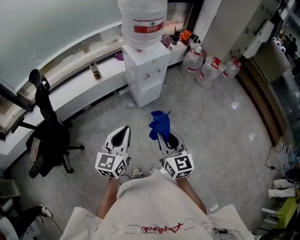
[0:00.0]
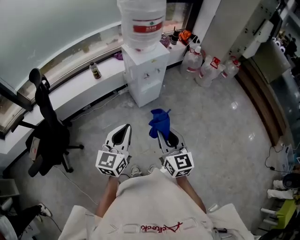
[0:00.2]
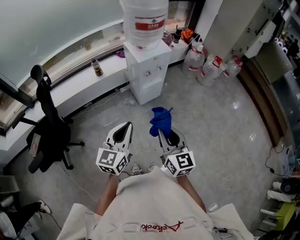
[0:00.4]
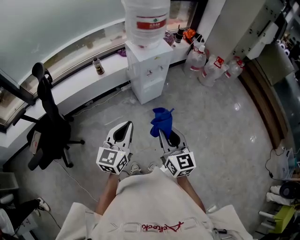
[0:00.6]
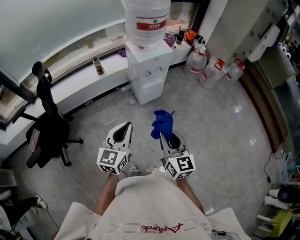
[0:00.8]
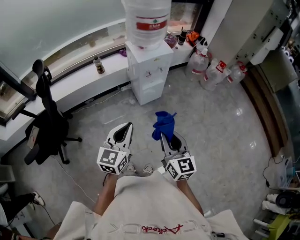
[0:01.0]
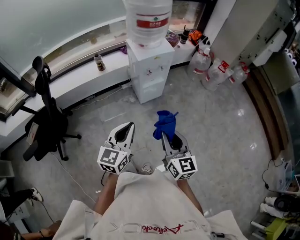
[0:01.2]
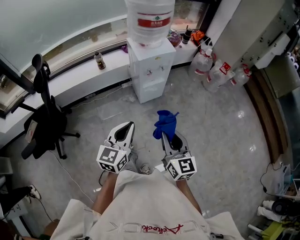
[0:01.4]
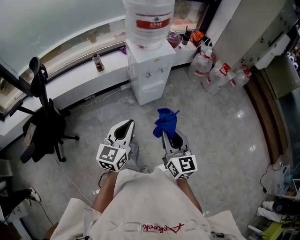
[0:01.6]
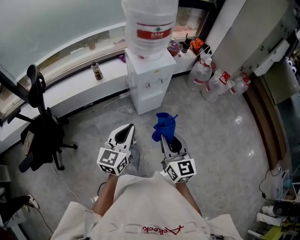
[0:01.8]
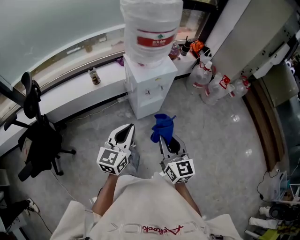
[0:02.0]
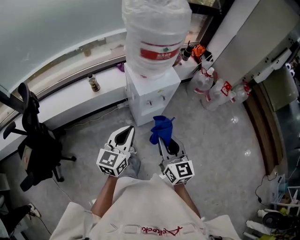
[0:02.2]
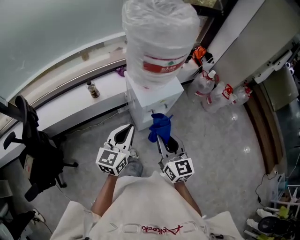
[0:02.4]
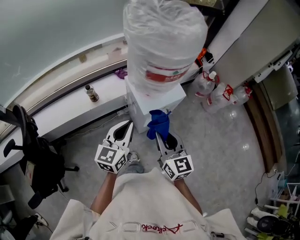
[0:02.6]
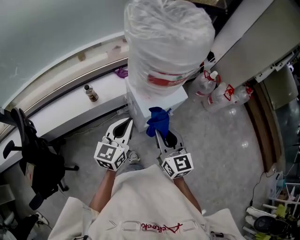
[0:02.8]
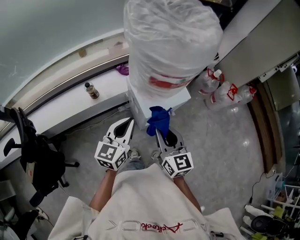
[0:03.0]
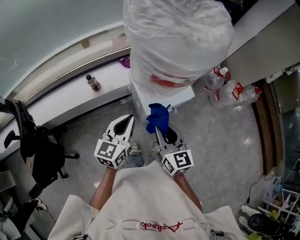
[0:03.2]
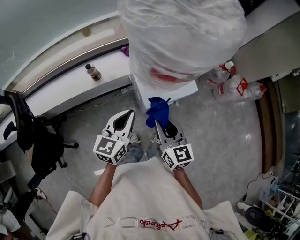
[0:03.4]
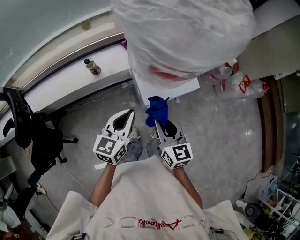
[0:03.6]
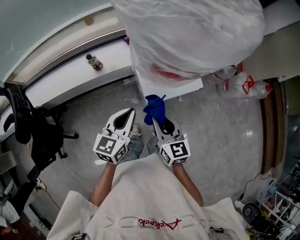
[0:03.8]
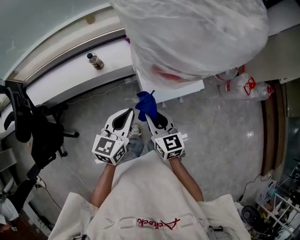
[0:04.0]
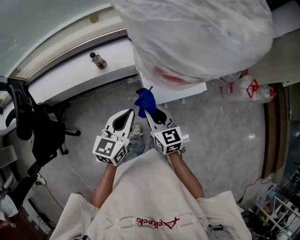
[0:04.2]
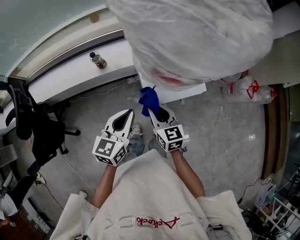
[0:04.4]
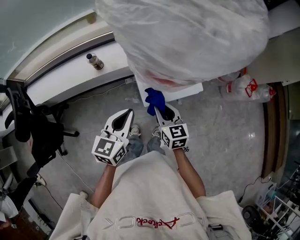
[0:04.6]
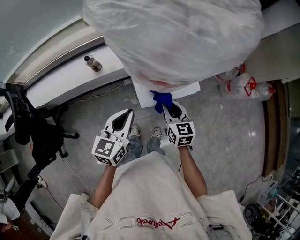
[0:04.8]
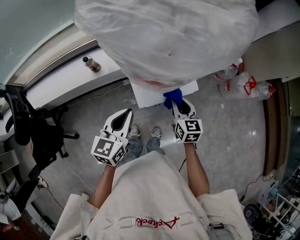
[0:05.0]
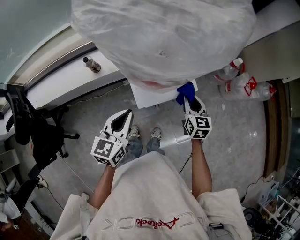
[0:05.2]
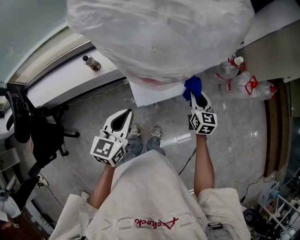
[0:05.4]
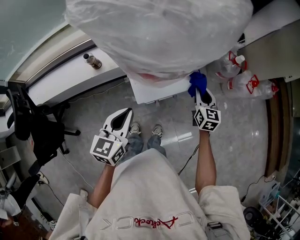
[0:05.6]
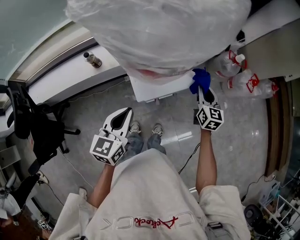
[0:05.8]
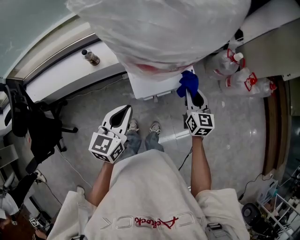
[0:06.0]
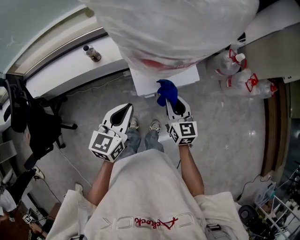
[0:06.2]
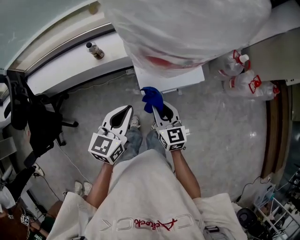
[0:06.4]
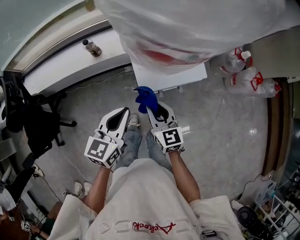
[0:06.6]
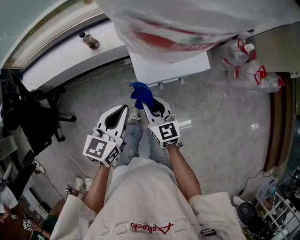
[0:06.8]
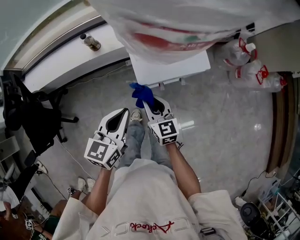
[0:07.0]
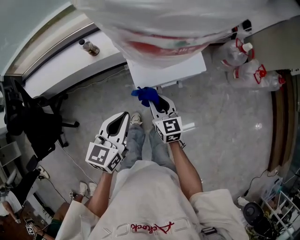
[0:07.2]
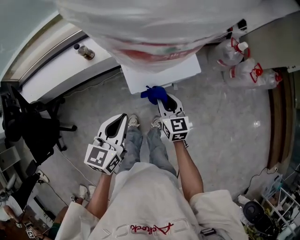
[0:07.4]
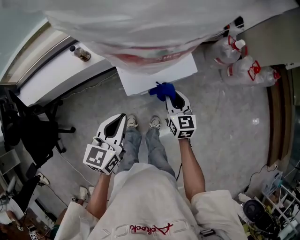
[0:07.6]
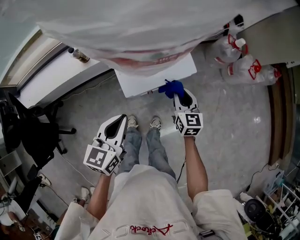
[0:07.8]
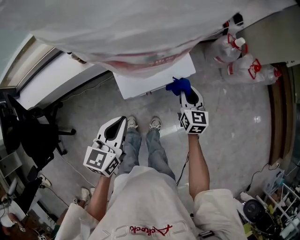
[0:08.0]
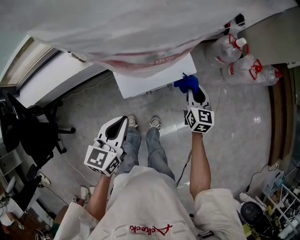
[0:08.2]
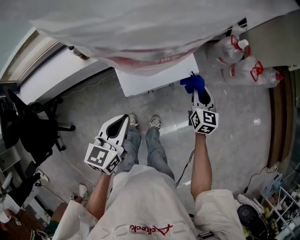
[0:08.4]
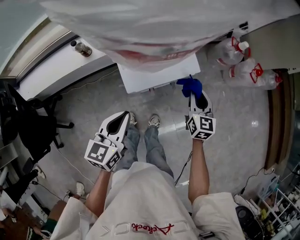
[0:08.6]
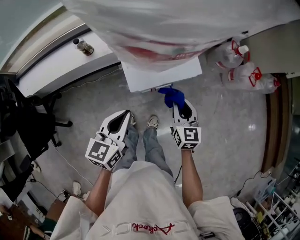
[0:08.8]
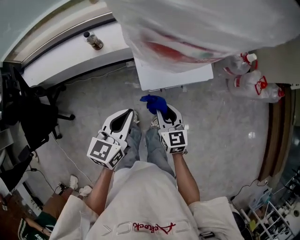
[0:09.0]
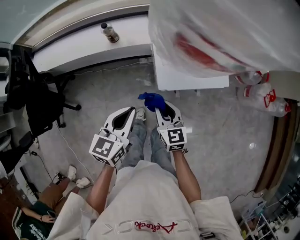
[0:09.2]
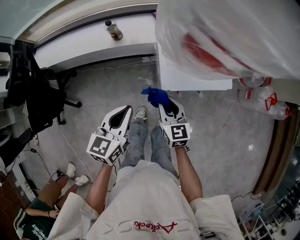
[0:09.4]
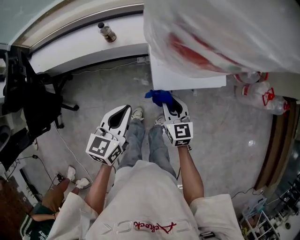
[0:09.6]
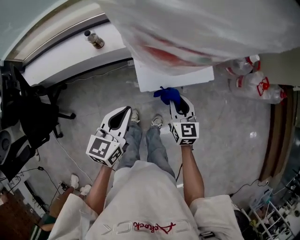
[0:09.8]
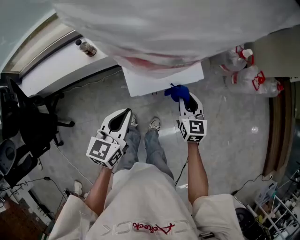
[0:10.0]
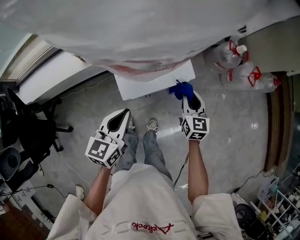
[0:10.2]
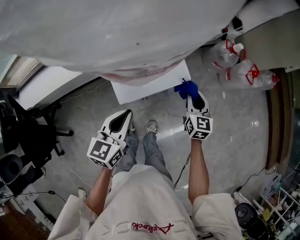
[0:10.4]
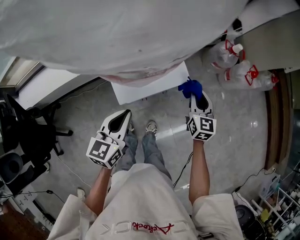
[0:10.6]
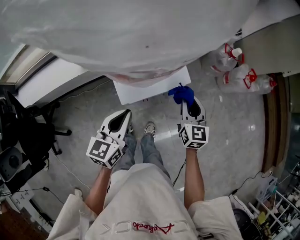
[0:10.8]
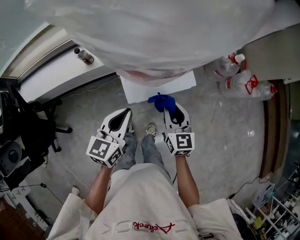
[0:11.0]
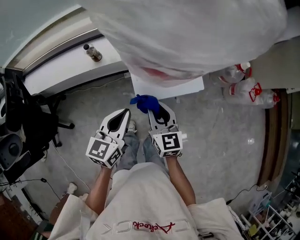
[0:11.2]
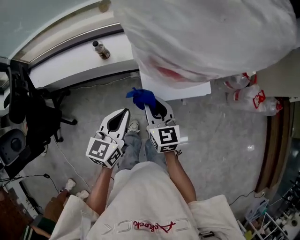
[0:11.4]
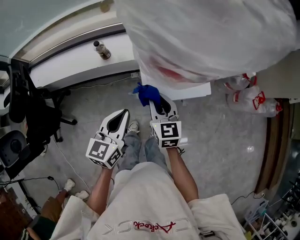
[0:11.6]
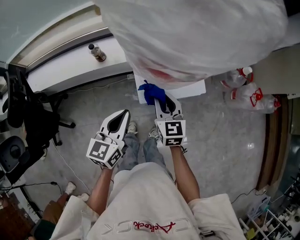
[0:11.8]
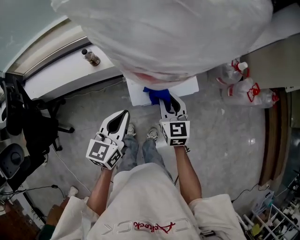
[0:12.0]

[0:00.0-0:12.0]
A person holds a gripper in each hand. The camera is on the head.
0:00.0 to 0:01.6: The two grippers go roughly 10 cm to the right and forward.
0:01.6 to 0:03.0: Both grippers move forward, some 40 cm.
0:03.0 to 0:04.4: The right gripper is displaced downward and forward by some 15 cm, and rotates some 20 degrees, while the left gripper heads downward, covering roughly 5 cm.
0:04.4 to 0:06.0: The right gripper goes some 20 cm to the right, and swivels about 20 degrees. Meanwhile the left gripper is displaced to the right by approximately 5 cm.
0:06.0 to 0:07.6: The left gripper shifts by roughly 5 cm, while the right gripper goes about 10 cm downward, and moves some 20 cm to the left and comes back.
0:07.6 to 0:09.0: The right gripper is displaced backward and to the left by roughly 10 cm.
0:09.0 to 0:10.4: The right gripper changes place by about 25 cm, and changes its angle by roughly 20 degrees. Meanwhile the left gripper shifts by approximately 10 cm.
0:10.4 to 0:12.0: The right gripper goes some 20 cm to the left. Meanwhile the left gripper travels to the left by some 5 cm.

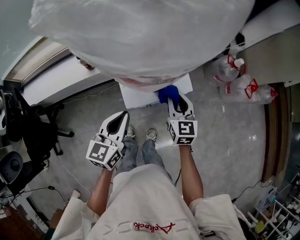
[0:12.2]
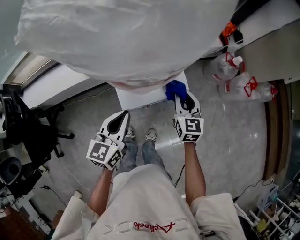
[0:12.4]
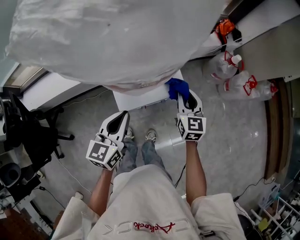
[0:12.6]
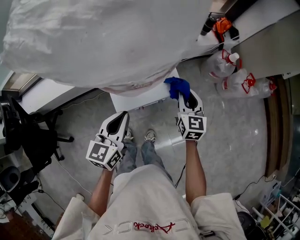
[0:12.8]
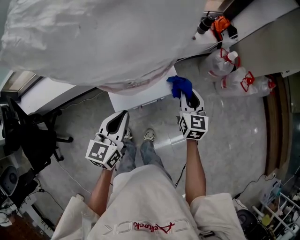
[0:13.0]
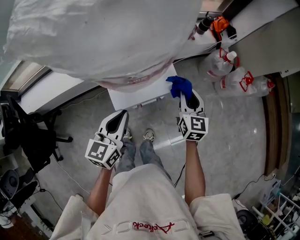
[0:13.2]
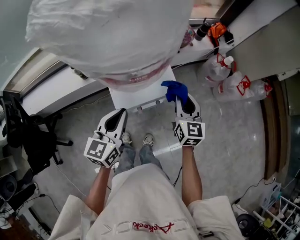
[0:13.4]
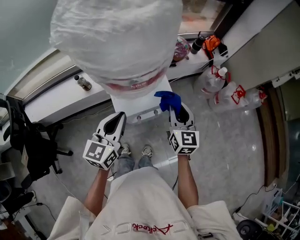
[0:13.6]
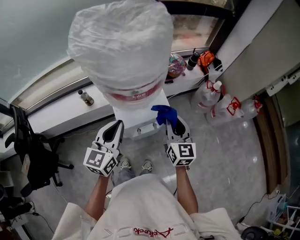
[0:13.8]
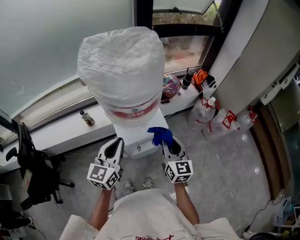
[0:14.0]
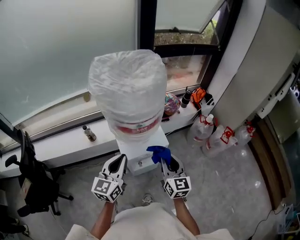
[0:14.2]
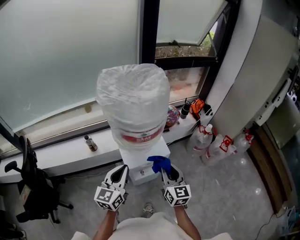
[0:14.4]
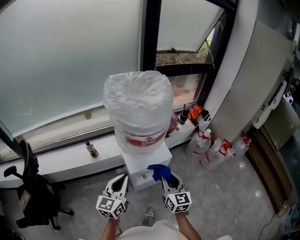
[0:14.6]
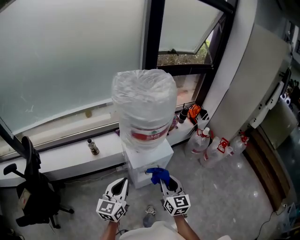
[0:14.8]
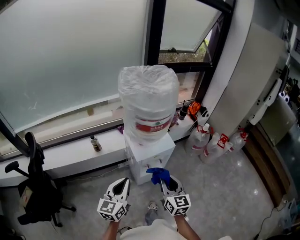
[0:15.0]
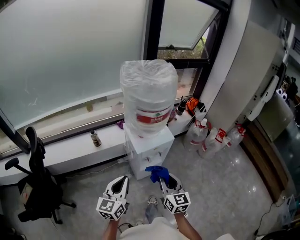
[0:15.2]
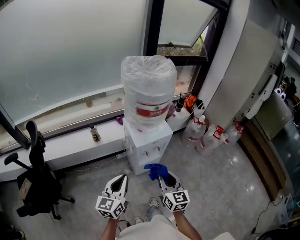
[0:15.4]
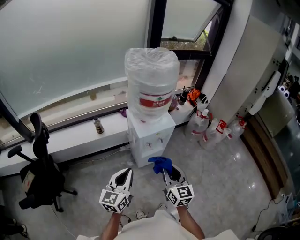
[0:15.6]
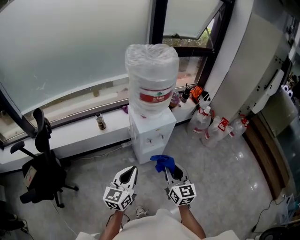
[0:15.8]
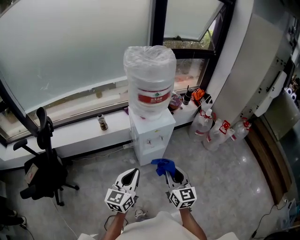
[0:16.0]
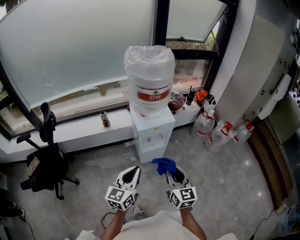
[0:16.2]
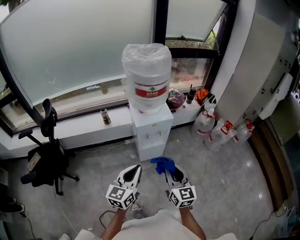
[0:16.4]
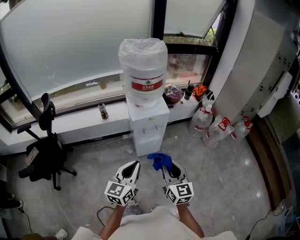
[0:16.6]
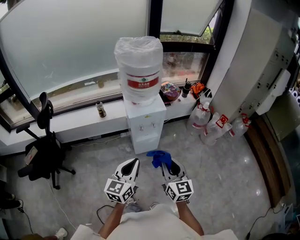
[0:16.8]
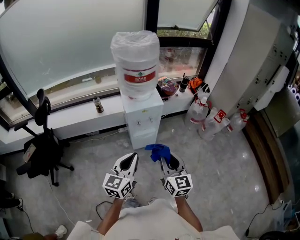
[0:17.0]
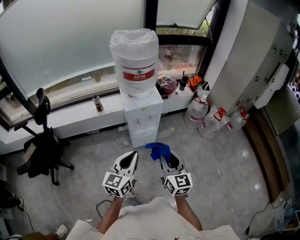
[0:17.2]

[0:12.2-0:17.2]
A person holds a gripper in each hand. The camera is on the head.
0:12.2 to 0:13.8: The left gripper shifts roughly 10 cm upward. The right gripper shifts about 15 cm upward and to the right.
0:13.8 to 0:15.6: Both grippers travel together backward, about 30 cm.
0:15.6 to 0:17.2: The two grippers go roughly 20 cm to the right and backward.

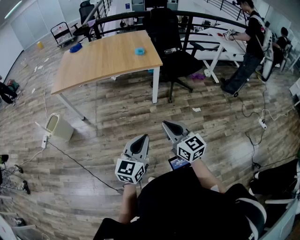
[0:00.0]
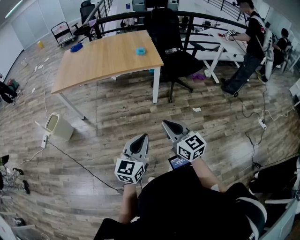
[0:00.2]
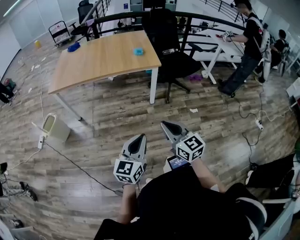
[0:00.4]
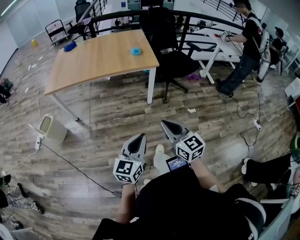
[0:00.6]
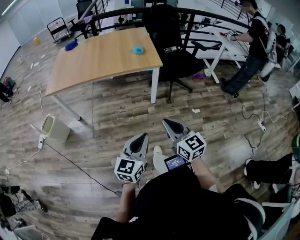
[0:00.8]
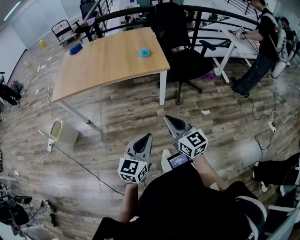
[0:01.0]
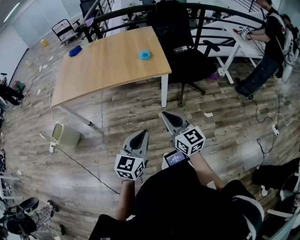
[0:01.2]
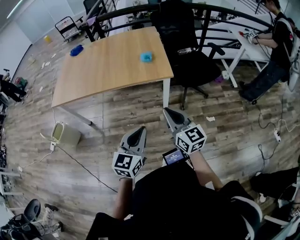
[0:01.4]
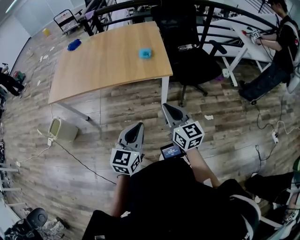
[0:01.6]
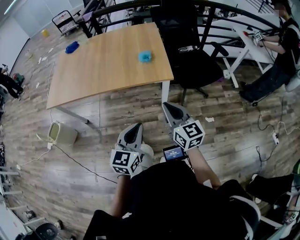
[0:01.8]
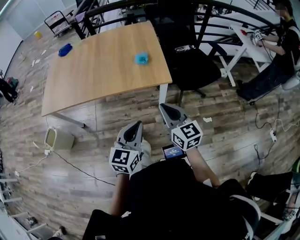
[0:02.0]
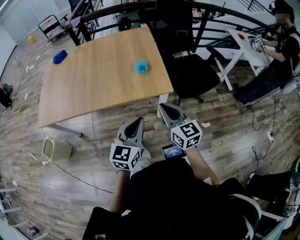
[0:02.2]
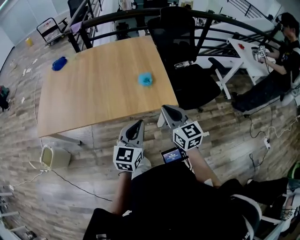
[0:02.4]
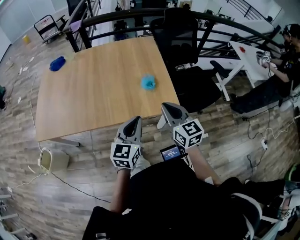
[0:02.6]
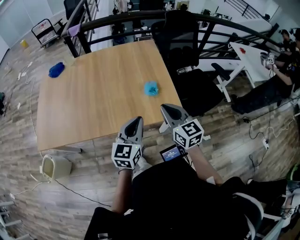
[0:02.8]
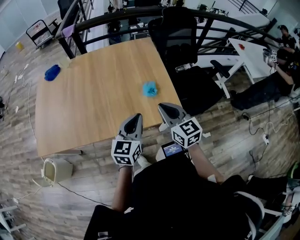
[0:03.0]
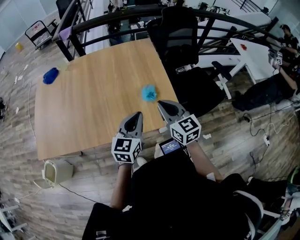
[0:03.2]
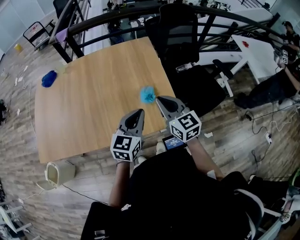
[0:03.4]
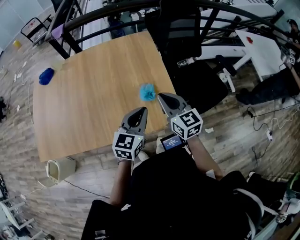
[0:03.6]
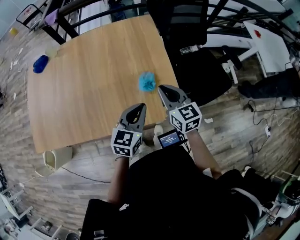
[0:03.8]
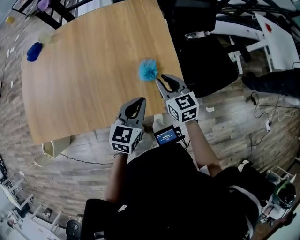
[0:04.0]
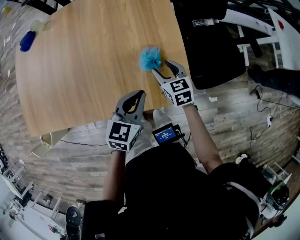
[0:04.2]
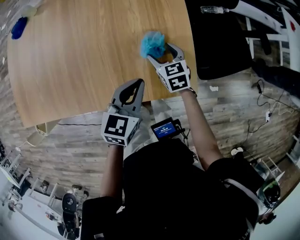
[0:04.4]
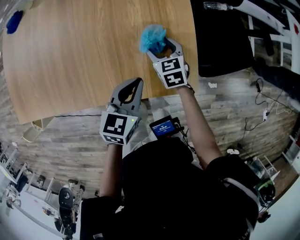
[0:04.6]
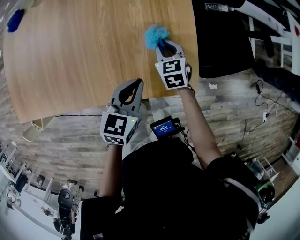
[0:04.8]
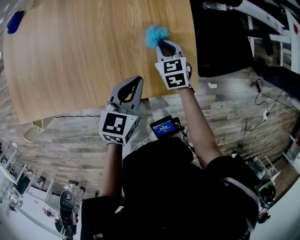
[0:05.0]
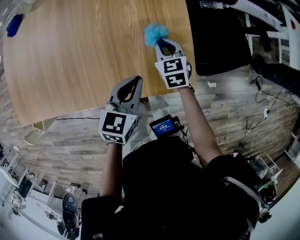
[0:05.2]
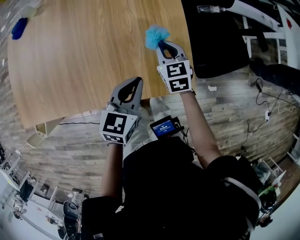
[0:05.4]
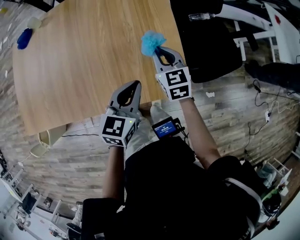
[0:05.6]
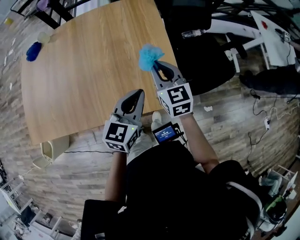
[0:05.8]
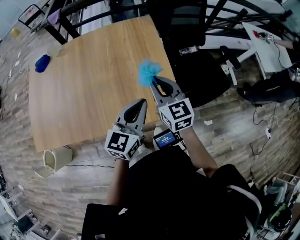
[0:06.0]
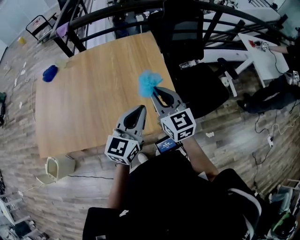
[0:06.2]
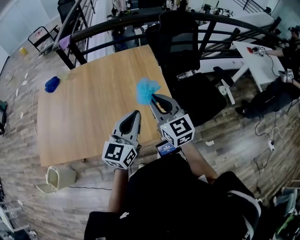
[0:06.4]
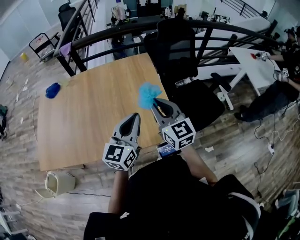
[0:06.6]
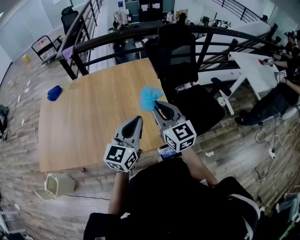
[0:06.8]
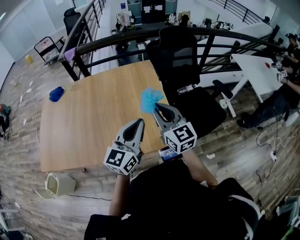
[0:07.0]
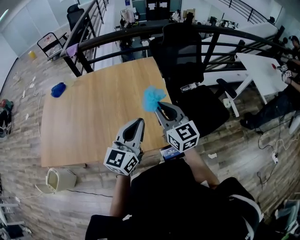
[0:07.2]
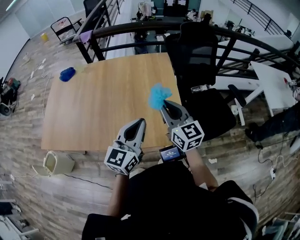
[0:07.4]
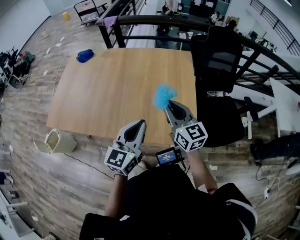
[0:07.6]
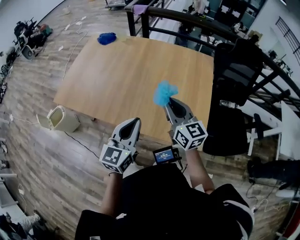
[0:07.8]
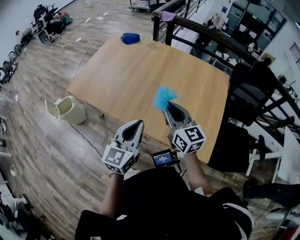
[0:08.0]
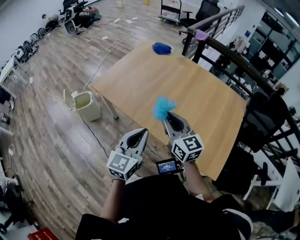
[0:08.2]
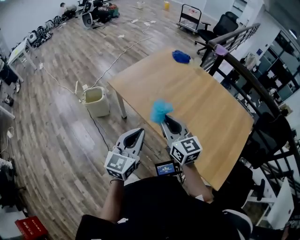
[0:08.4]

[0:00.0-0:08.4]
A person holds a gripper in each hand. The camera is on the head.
0:00.0 to 0:01.4: Both grippers travel together forward, about 30 cm.
0:01.4 to 0:02.8: The two grippers go some 40 cm forward.
0:02.8 to 0:04.2: The right gripper is displaced downward and forward by about 35 cm, rotates about 30 degrees, and opens up. Meanwhile the left gripper moves forward and downward, roughly 20 cm, and turns by roughly 20 degrees.
0:04.2 to 0:05.6: The left gripper moves about 5 cm downward and comes back. Meanwhile the right gripper travels upward by approximately 5 cm, and closes.
0:05.6 to 0:07.0: The left gripper moves upward, about 20 cm, and rotates roughly 30 degrees. The right gripper travels upward and backward by about 25 cm, and turns by about 30 degrees.
0:07.0 to 0:08.4: The two grippers travel together, roughly 40 cm. The right gripper changes its angle by roughly 50 degrees, while the left gripper rotates some 60 degrees.
